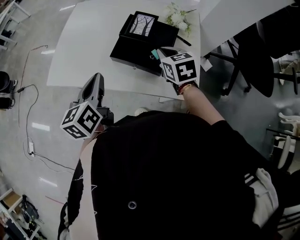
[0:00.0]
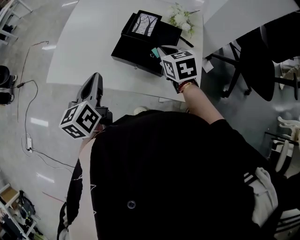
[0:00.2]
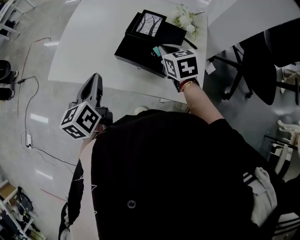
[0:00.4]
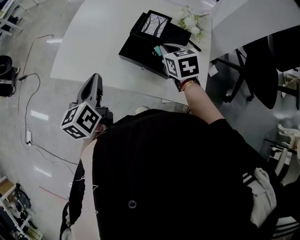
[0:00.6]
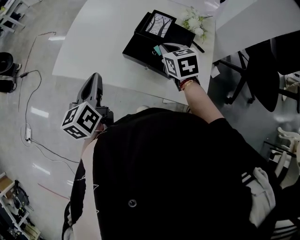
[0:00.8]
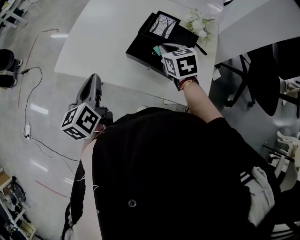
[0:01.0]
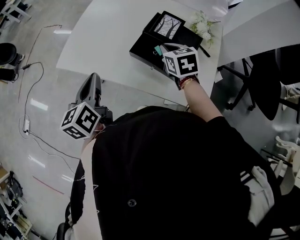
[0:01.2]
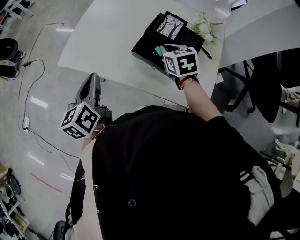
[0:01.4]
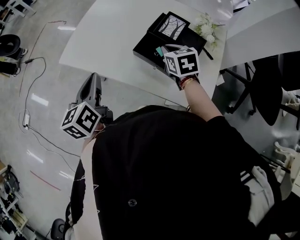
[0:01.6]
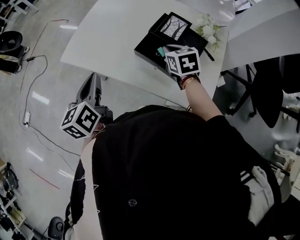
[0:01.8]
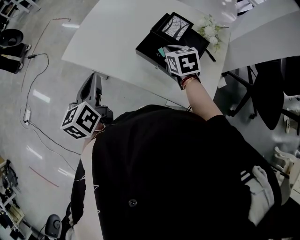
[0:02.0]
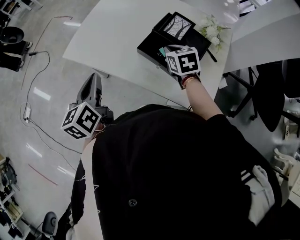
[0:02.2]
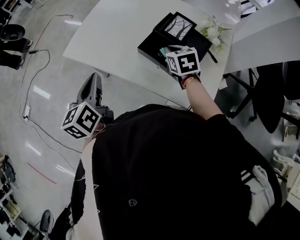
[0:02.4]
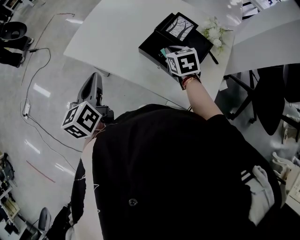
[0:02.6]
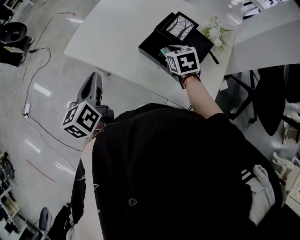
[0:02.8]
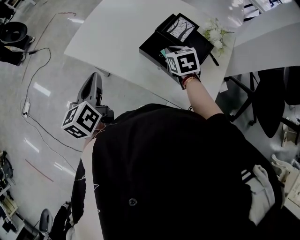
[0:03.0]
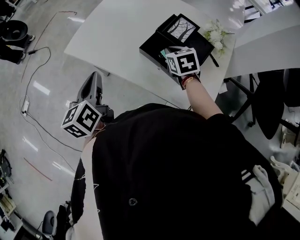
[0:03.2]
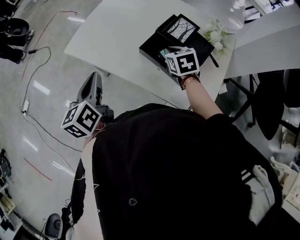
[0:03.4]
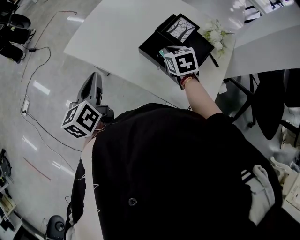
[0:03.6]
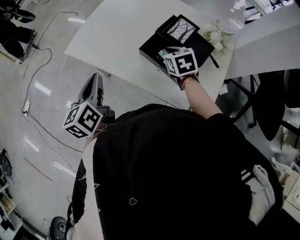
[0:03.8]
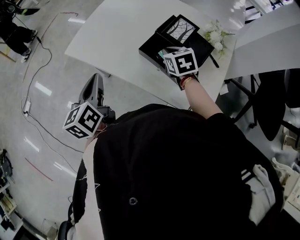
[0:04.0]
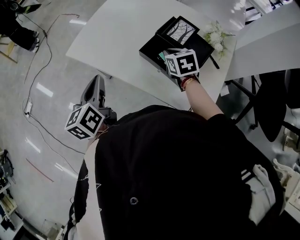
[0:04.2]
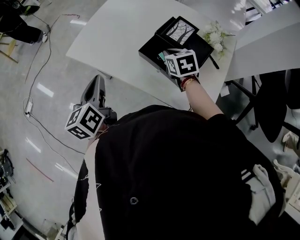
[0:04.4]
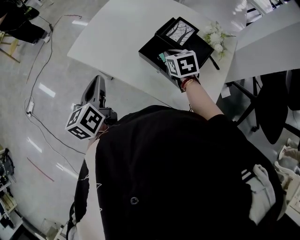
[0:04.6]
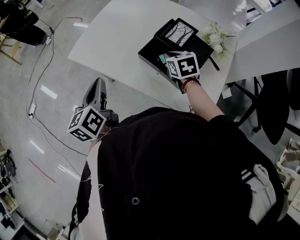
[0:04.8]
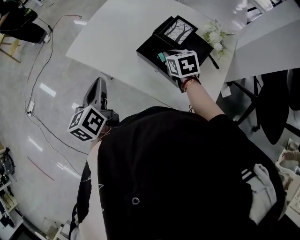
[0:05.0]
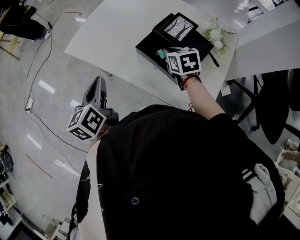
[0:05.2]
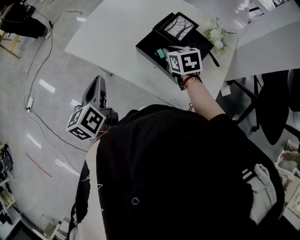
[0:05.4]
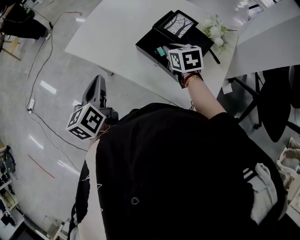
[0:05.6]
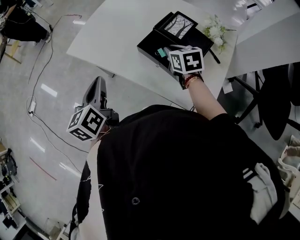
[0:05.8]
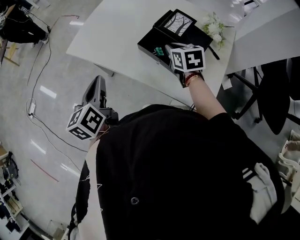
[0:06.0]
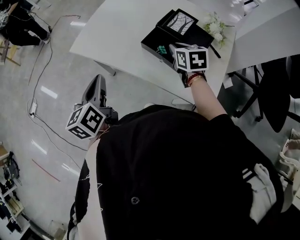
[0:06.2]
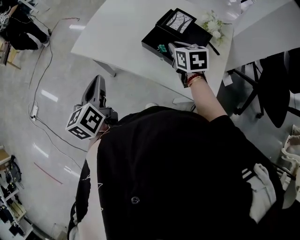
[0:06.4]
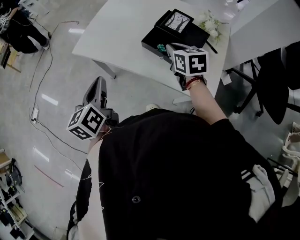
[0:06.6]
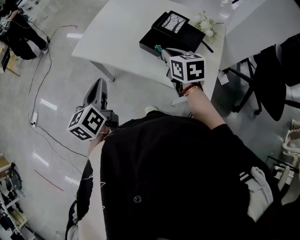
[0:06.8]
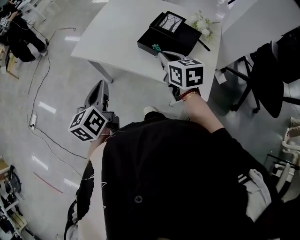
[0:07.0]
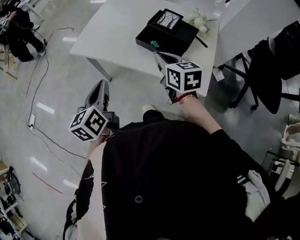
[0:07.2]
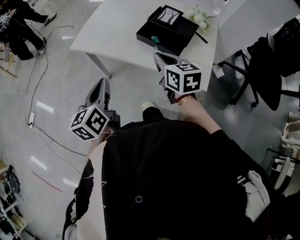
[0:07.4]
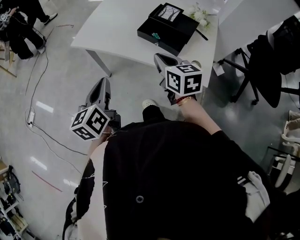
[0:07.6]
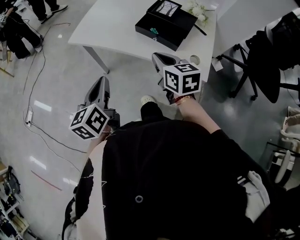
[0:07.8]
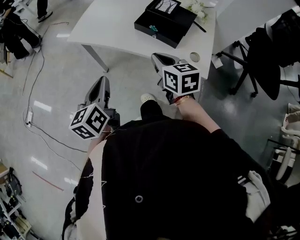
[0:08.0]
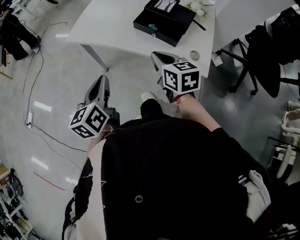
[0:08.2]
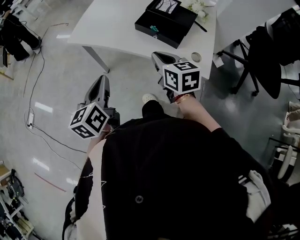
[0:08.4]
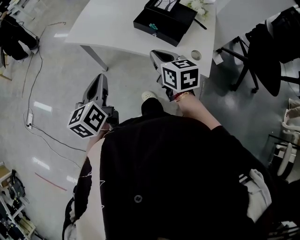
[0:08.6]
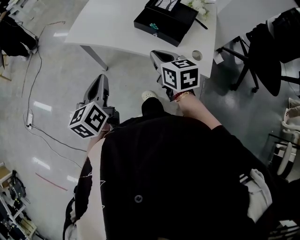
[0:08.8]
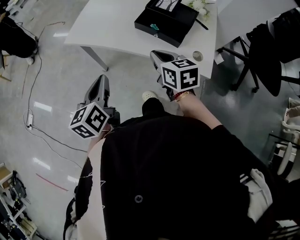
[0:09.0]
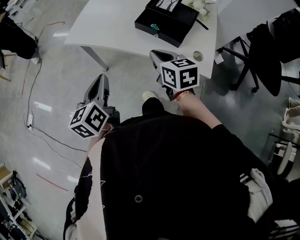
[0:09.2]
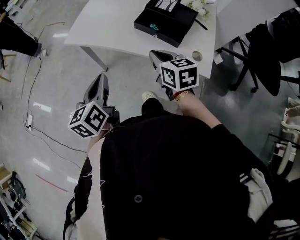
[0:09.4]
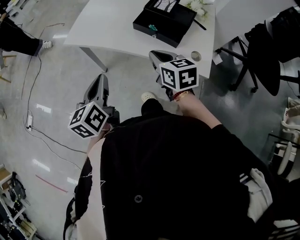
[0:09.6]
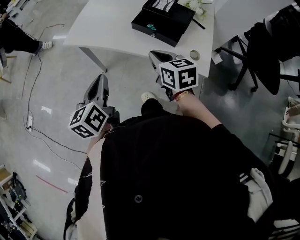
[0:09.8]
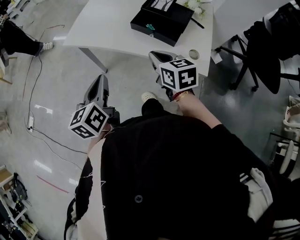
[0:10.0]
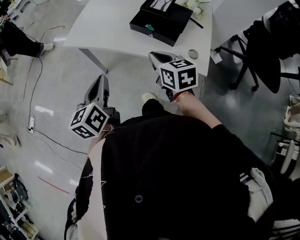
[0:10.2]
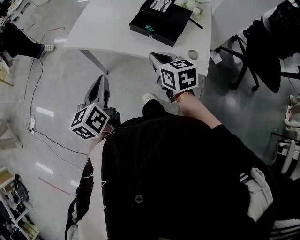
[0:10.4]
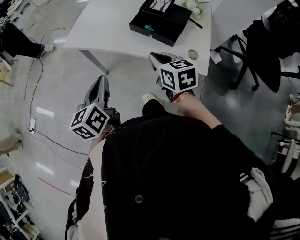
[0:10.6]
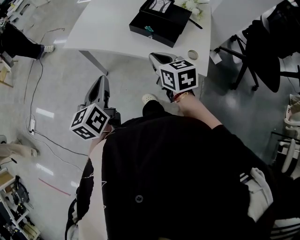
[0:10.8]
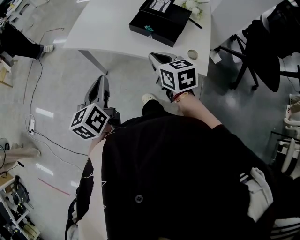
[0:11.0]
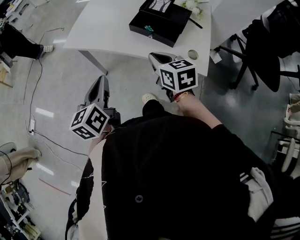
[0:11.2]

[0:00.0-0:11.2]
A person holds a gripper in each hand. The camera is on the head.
0:00.0 to 0:01.6: The right gripper goes roughly 10 cm to the left and forward. The left gripper heads to the left, covering roughly 10 cm.
0:01.6 to 0:04.8: The grippers move only a little.
0:04.8 to 0:06.4: The right gripper shifts roughly 5 cm upward, while the left gripper moves about 5 cm.
0:06.4 to 0:08.0: The left gripper heads backward, covering roughly 10 cm. The right gripper goes about 20 cm backward and to the left.
0:08.0 to 0:11.2: The grippers stay close to where they were, moving slightly.

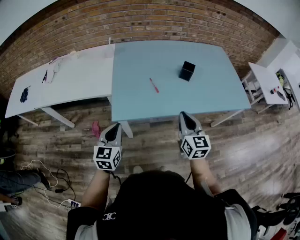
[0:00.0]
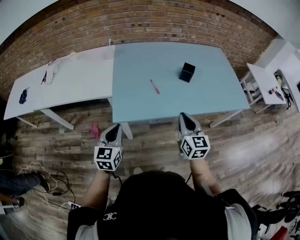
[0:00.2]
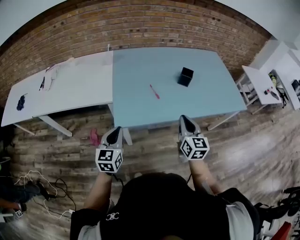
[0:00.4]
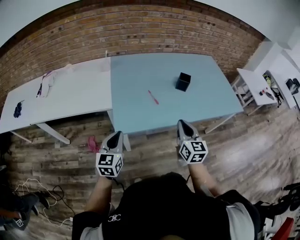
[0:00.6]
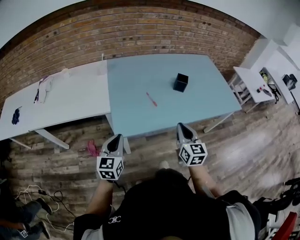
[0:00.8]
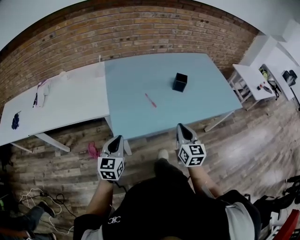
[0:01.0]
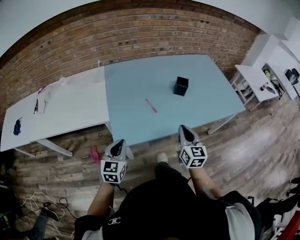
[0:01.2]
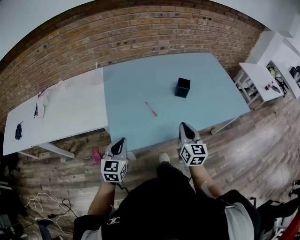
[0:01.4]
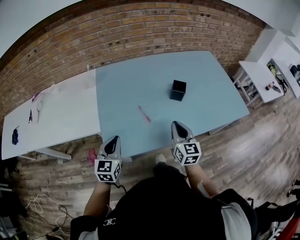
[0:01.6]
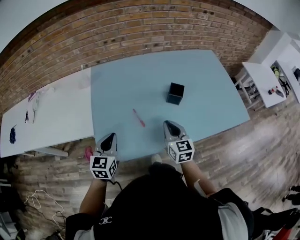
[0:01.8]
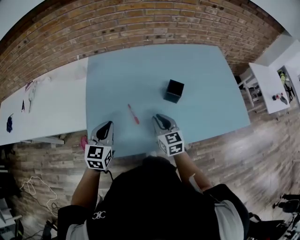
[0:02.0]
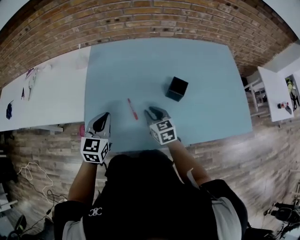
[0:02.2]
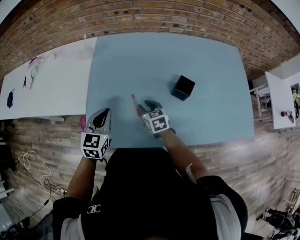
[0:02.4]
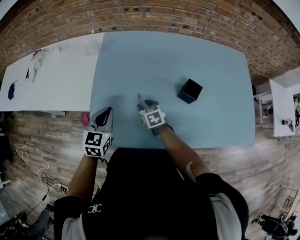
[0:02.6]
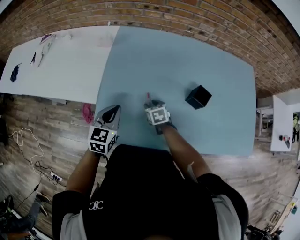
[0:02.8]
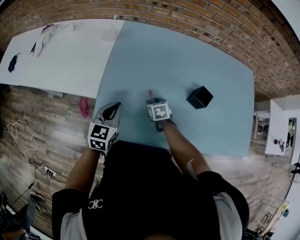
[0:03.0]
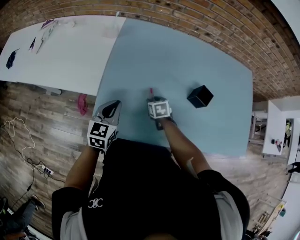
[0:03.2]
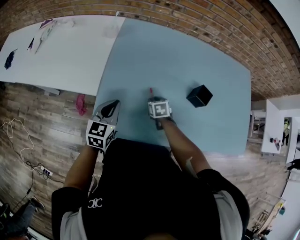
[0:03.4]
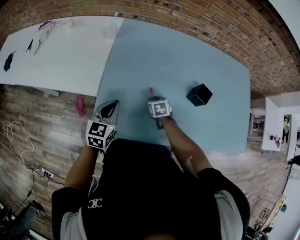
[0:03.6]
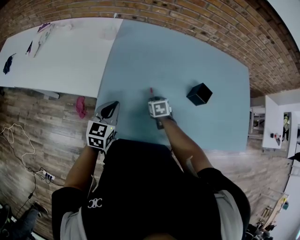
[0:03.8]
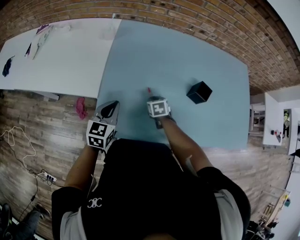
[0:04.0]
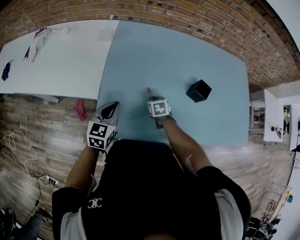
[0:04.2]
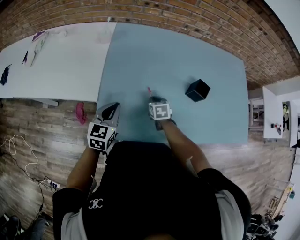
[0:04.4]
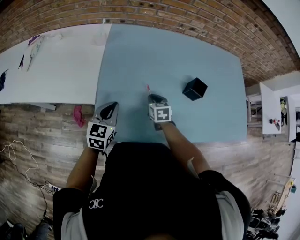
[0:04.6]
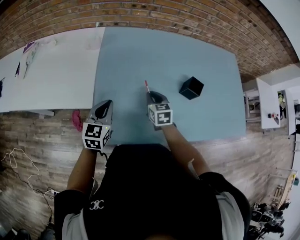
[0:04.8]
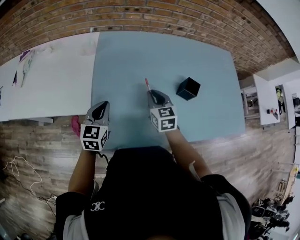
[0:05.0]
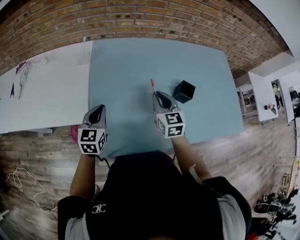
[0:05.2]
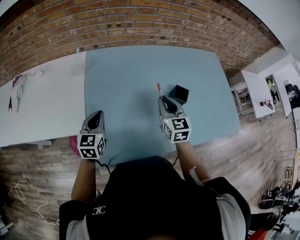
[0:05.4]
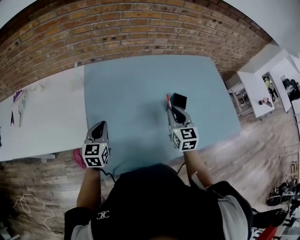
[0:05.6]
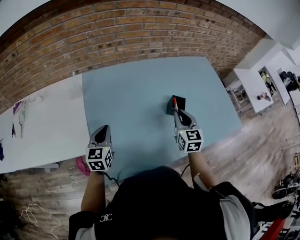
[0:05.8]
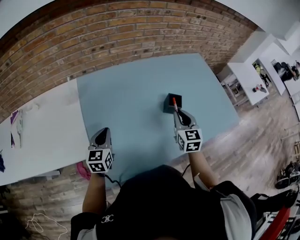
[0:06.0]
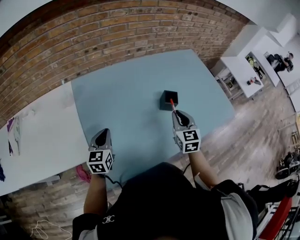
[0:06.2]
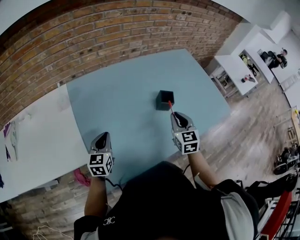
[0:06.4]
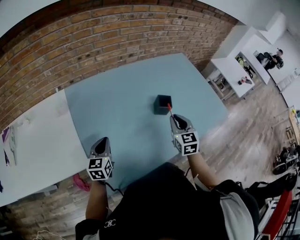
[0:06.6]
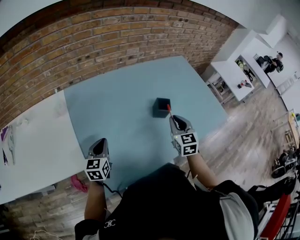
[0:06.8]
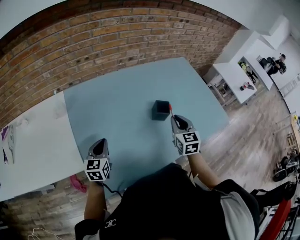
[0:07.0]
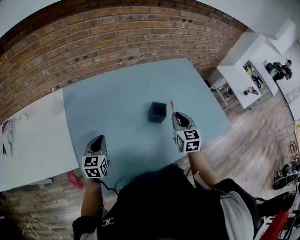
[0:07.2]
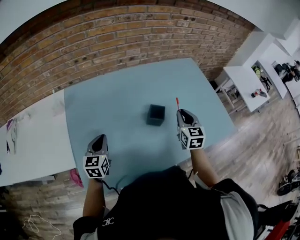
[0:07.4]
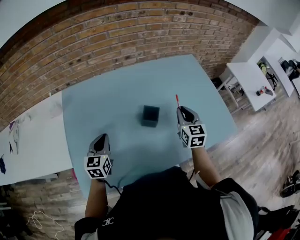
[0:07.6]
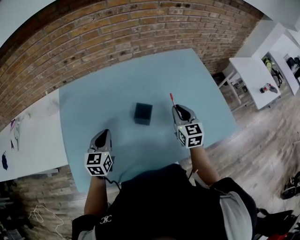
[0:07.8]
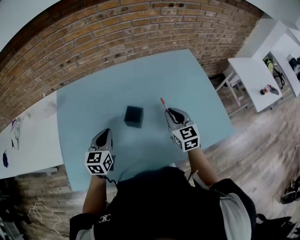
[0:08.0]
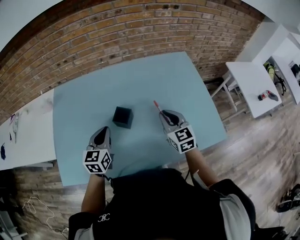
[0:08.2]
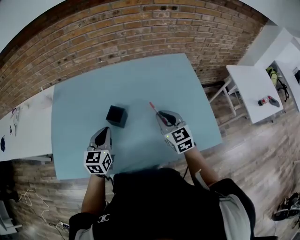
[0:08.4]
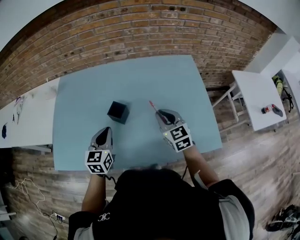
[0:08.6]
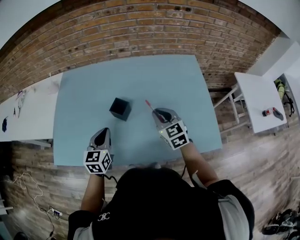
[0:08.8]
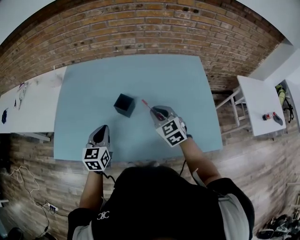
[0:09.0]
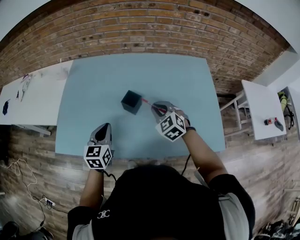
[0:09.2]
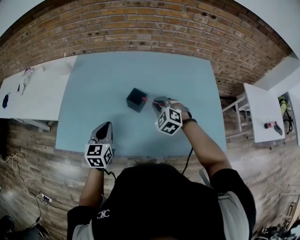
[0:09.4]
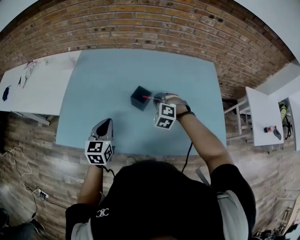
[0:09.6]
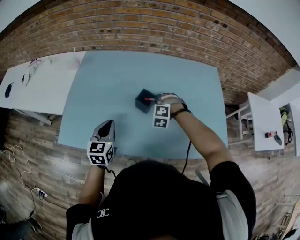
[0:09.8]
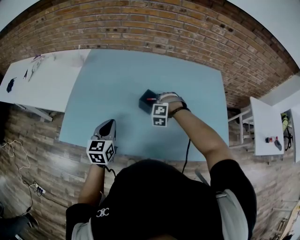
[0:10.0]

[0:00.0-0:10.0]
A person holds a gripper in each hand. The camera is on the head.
0:00.0 to 0:01.4: The two grippers go about 10 cm forward.
0:01.4 to 0:02.8: The right gripper ends up approximately 30 cm from where it was, tips its fingers downward by about 40 degrees, and opens. The left gripper changes place by roughly 15 cm.
0:02.8 to 0:04.2: The right gripper closes its fingers.
0:04.2 to 0:05.8: The right gripper moves upward and to the right, some 30 cm, and tips its fingers upward by roughly 40 degrees. Meanwhile the left gripper is displaced forward by about 10 cm.
0:05.8 to 0:07.2: Both grippers travel together to the right, about 10 cm.
0:07.2 to 0:08.6: The left gripper ends up some 30 cm from where it was. Meanwhile the right gripper moves approximately 20 cm, and changes its angle by approximately 30 degrees.
0:08.6 to 0:10.0: The left gripper shifts about 10 cm to the left. Meanwhile the right gripper travels to the left, downward and forward by roughly 20 cm, and rolls counterclockwise, seen from behind, by some 80 degrees.

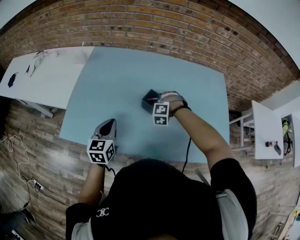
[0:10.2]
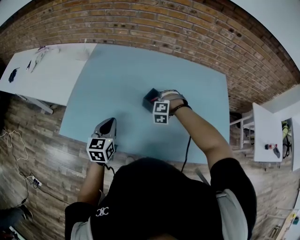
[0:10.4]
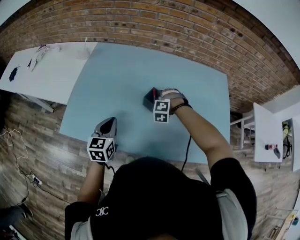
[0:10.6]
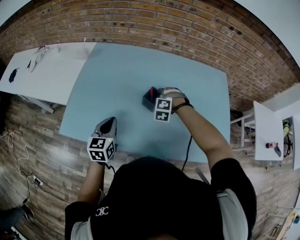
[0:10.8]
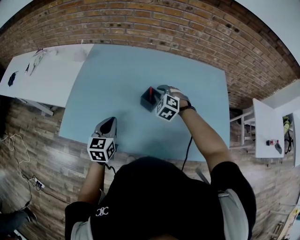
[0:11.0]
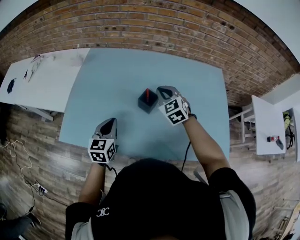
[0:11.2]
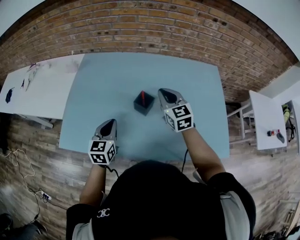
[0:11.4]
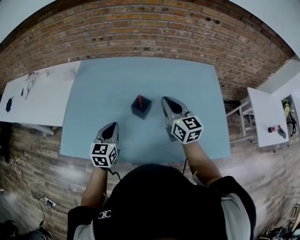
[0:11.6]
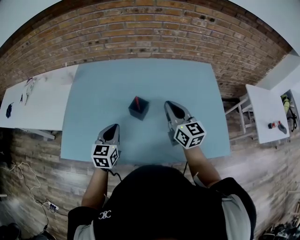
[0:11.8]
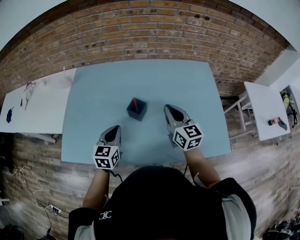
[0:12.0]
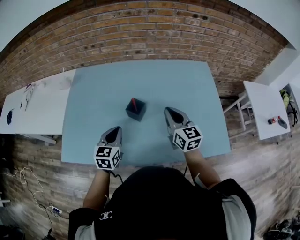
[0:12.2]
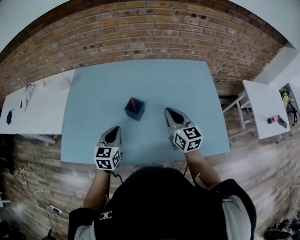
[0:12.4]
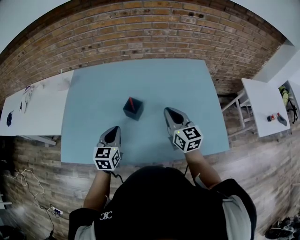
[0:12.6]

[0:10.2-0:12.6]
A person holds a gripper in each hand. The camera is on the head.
0:10.2 to 0:11.4: The right gripper moves upward, roughly 15 cm, and rotates around the line of its fingers by approximately 80 degrees, clockwise from behind.
0:11.4 to 0:12.6: The right gripper moves backward and to the right, some 10 cm. The left gripper goes approximately 5 cm to the right.
